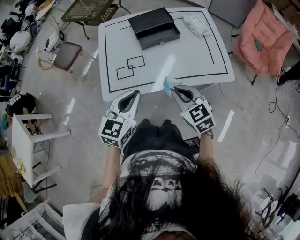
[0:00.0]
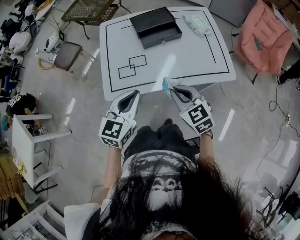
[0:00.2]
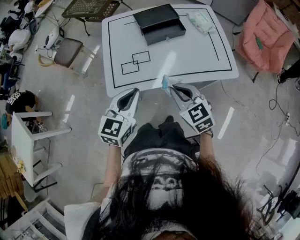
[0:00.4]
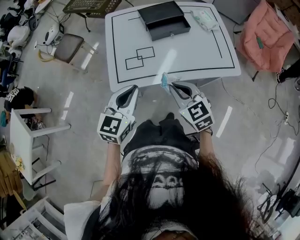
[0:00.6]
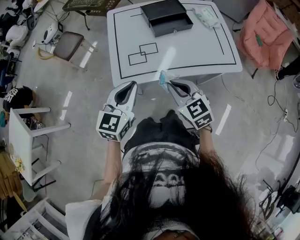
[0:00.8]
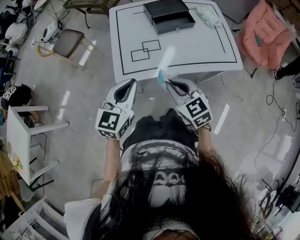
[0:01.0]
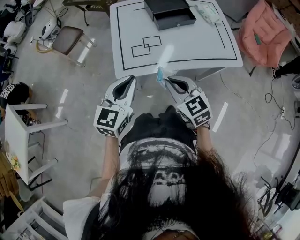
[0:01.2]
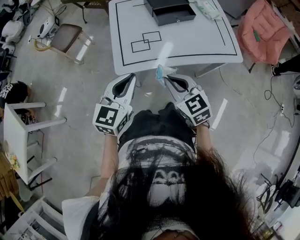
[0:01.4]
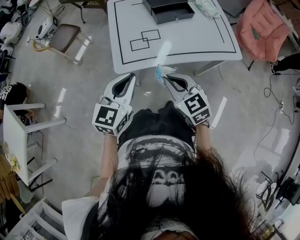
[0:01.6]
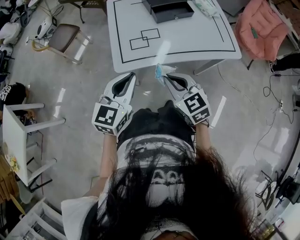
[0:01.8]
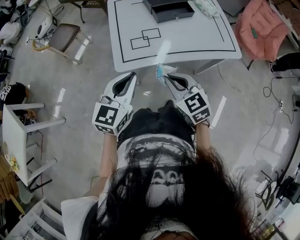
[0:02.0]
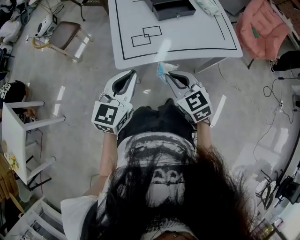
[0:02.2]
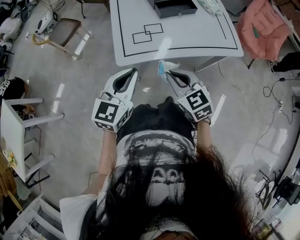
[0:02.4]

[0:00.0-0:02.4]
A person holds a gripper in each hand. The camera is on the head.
0:00.0 to 0:01.2: The two grippers go about 15 cm to the left.
0:01.2 to 0:02.4: The grippers stay close to where they were, moving slightly.

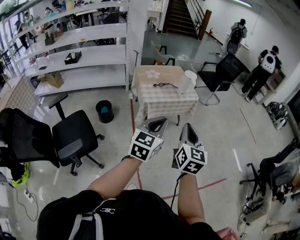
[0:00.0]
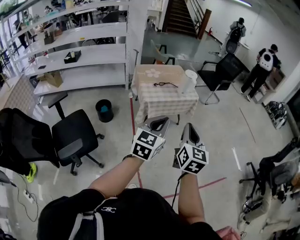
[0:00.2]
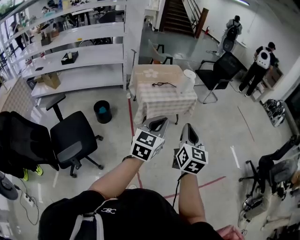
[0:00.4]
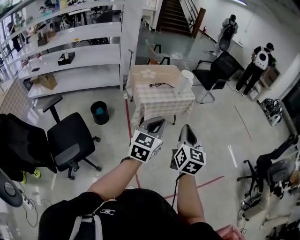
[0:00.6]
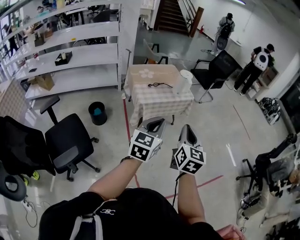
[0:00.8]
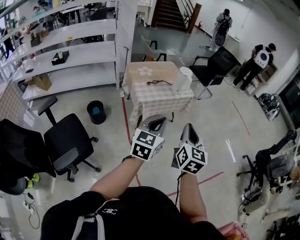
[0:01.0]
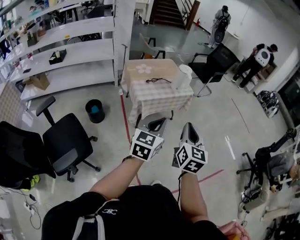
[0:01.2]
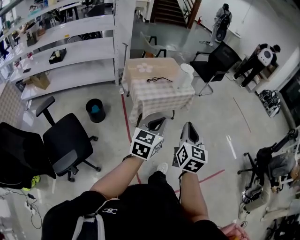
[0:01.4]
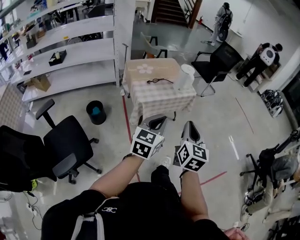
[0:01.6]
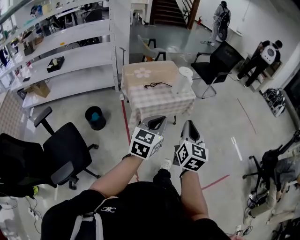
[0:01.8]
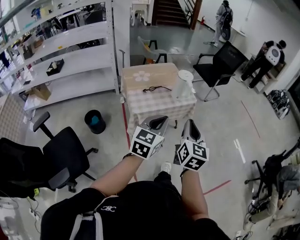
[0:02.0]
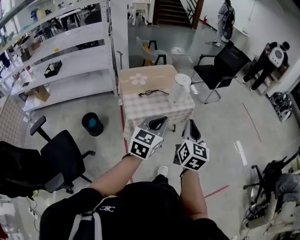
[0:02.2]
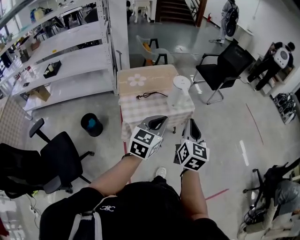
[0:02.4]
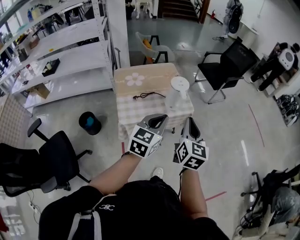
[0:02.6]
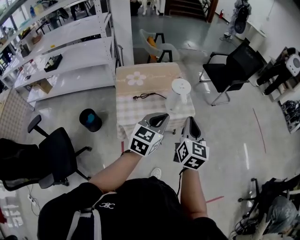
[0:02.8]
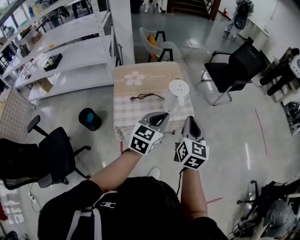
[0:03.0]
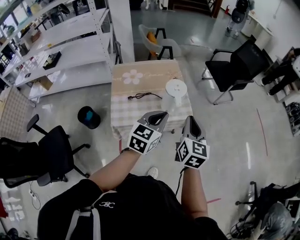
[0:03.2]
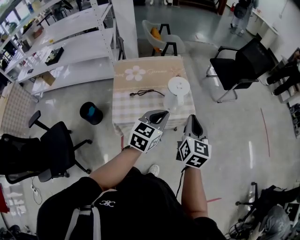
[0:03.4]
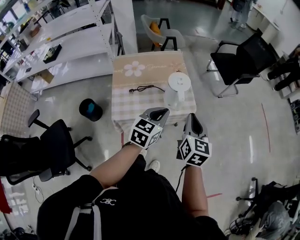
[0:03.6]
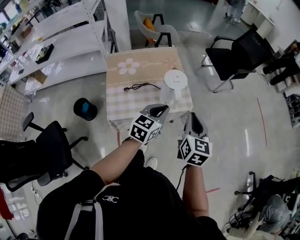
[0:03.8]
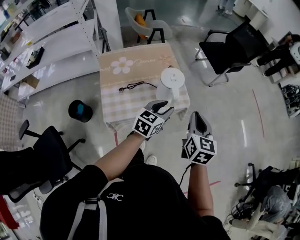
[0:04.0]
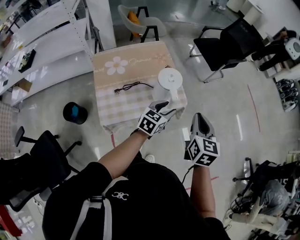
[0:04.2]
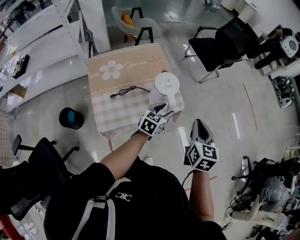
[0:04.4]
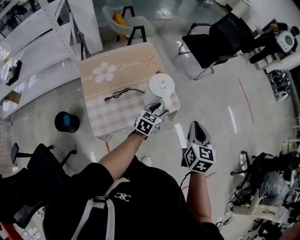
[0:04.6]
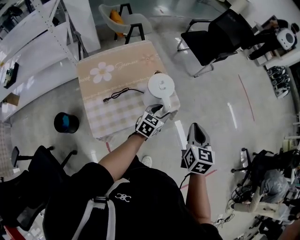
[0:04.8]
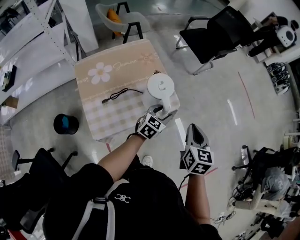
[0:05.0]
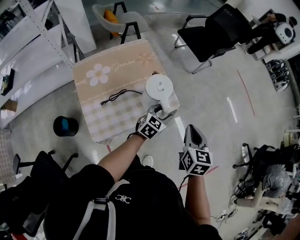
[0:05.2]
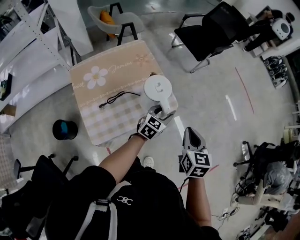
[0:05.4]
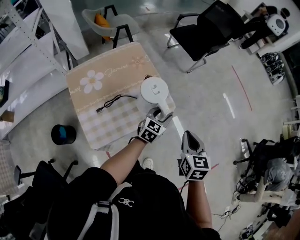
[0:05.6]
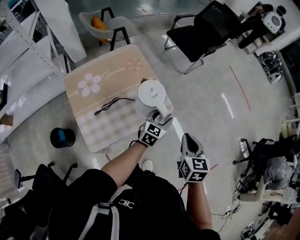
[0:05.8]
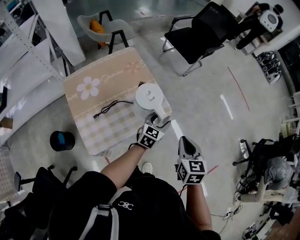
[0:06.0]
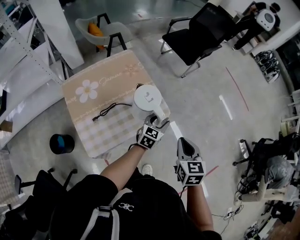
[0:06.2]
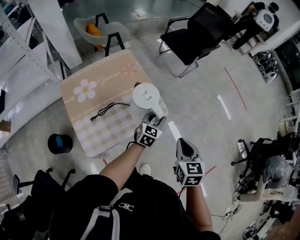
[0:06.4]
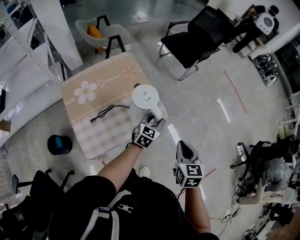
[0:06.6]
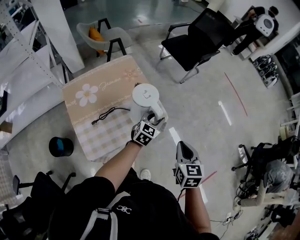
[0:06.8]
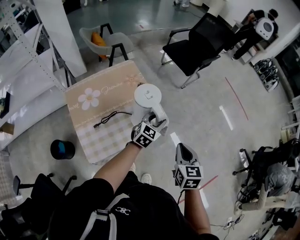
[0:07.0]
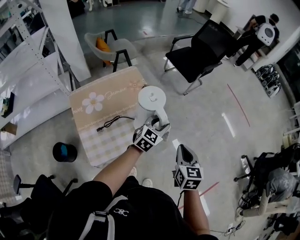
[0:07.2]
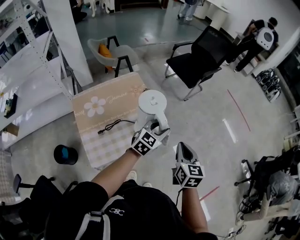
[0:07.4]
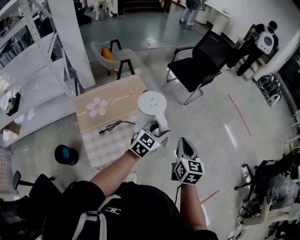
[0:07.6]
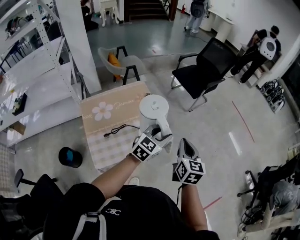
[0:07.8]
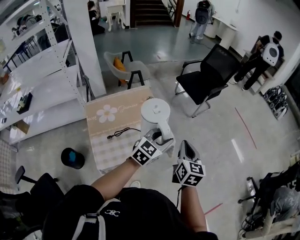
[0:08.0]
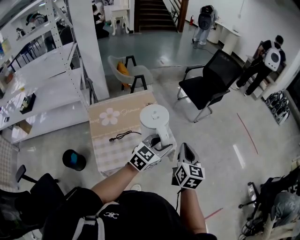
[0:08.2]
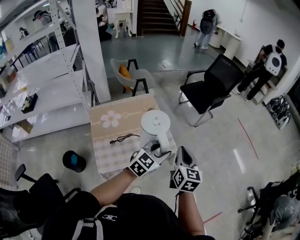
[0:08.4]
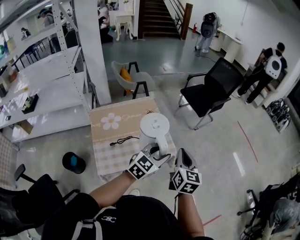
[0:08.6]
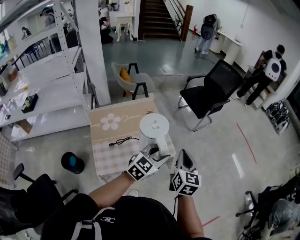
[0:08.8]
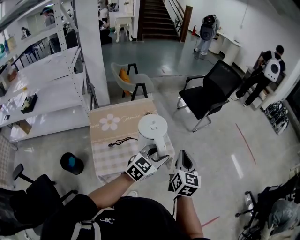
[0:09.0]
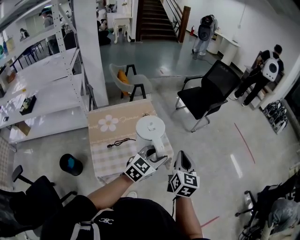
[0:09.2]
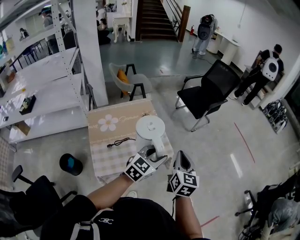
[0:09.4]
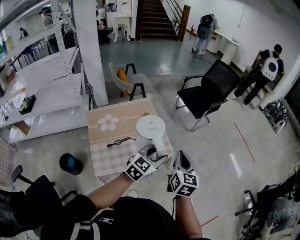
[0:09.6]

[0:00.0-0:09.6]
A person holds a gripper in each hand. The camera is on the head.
0:00.0 to 0:01.6: The two grippers go roughly 10 cm forward and downward.
0:01.6 to 0:03.2: The two grippers travel together, forward, approximately 50 cm.
0:03.2 to 0:04.8: The left gripper shifts approximately 25 cm downward and forward, swivels approximately 20 degrees, and opens up; the right gripper goes about 10 cm downward and forward, and rotates about 20 degrees.
0:04.8 to 0:06.4: The left gripper shifts by about 5 cm.
0:06.4 to 0:08.0: The right gripper heads upward, covering about 10 cm, and changes its angle by approximately 20 degrees; the left gripper goes about 20 cm upward.
0:08.0 to 0:09.6: The grippers make only small movements.

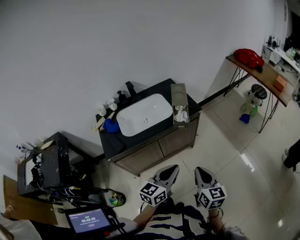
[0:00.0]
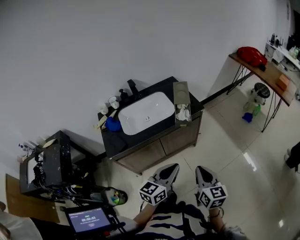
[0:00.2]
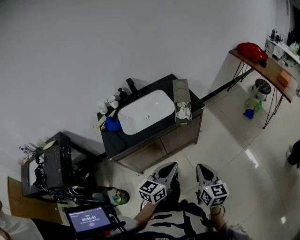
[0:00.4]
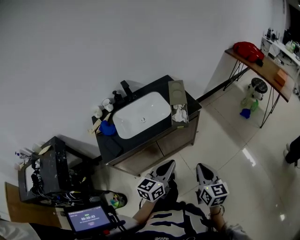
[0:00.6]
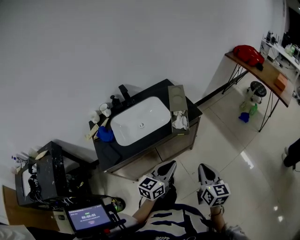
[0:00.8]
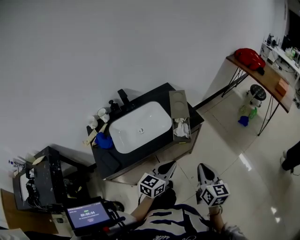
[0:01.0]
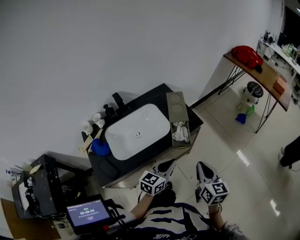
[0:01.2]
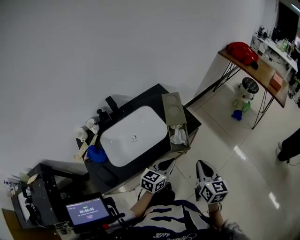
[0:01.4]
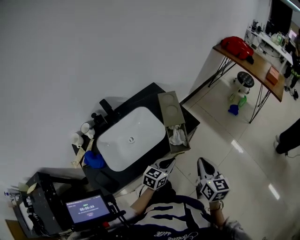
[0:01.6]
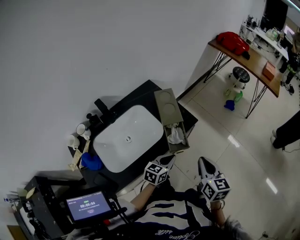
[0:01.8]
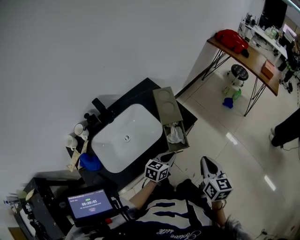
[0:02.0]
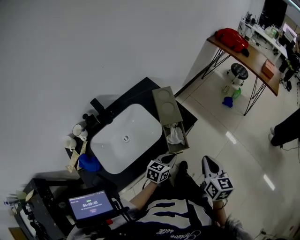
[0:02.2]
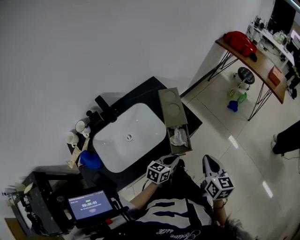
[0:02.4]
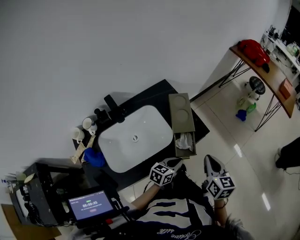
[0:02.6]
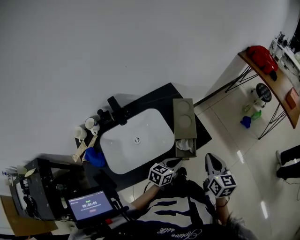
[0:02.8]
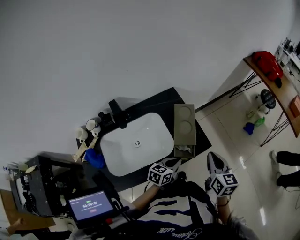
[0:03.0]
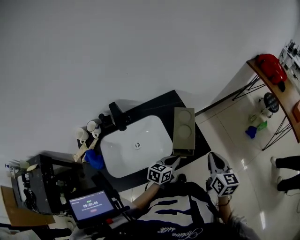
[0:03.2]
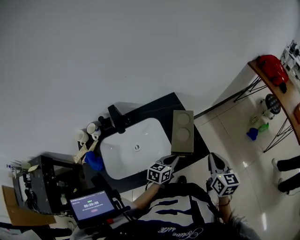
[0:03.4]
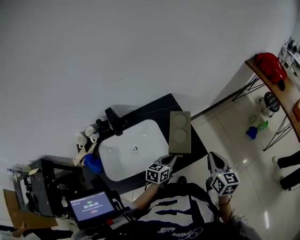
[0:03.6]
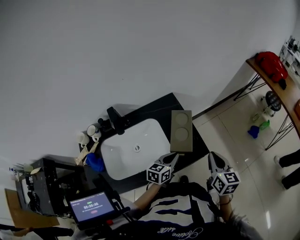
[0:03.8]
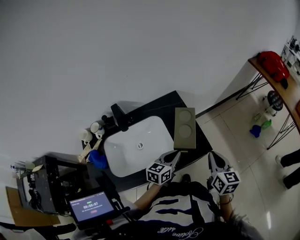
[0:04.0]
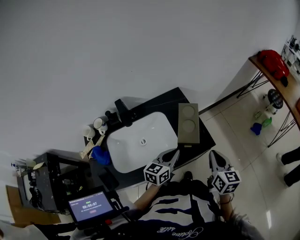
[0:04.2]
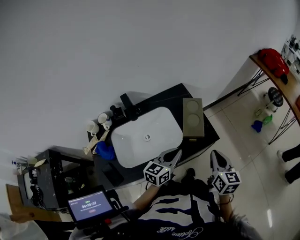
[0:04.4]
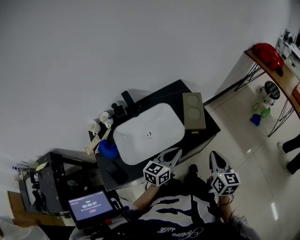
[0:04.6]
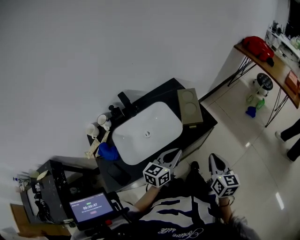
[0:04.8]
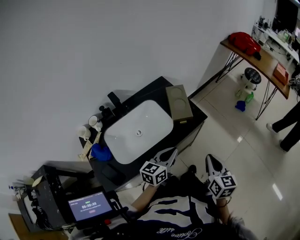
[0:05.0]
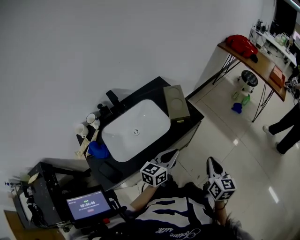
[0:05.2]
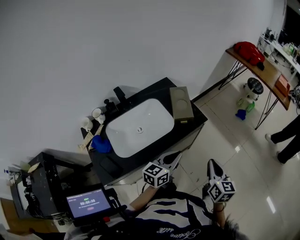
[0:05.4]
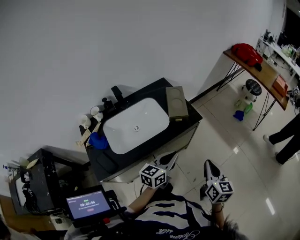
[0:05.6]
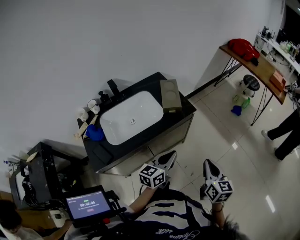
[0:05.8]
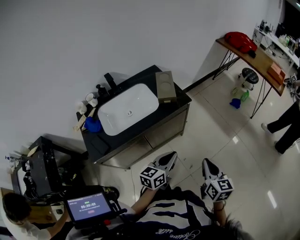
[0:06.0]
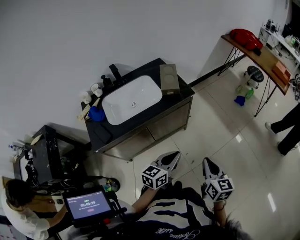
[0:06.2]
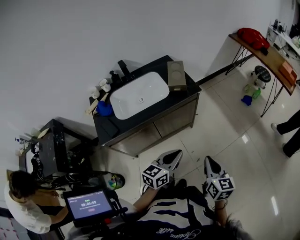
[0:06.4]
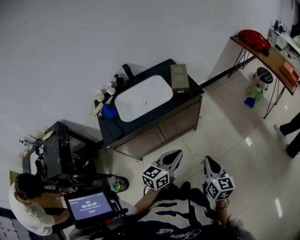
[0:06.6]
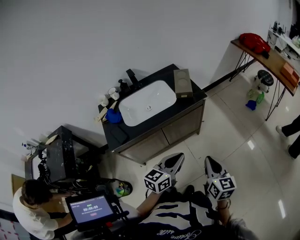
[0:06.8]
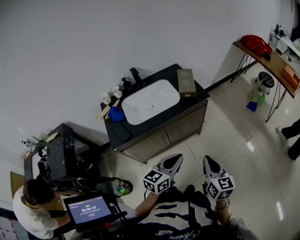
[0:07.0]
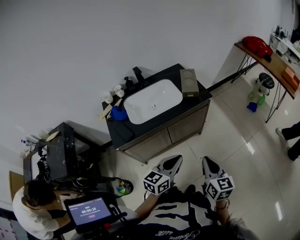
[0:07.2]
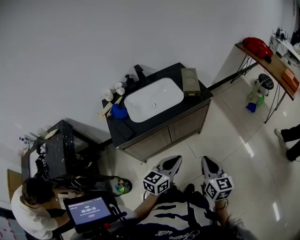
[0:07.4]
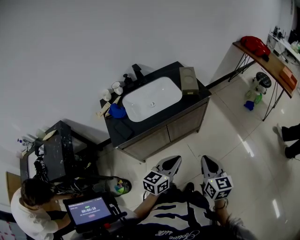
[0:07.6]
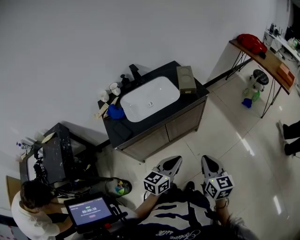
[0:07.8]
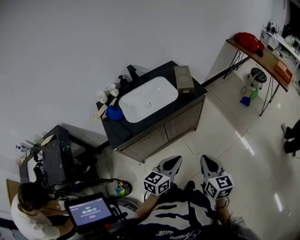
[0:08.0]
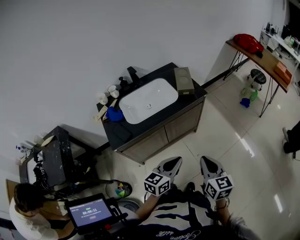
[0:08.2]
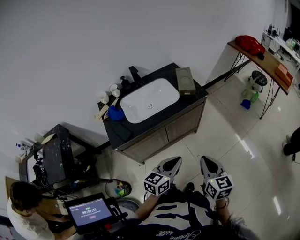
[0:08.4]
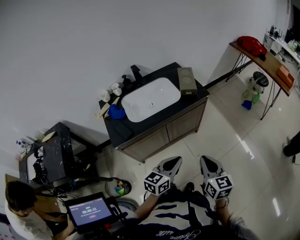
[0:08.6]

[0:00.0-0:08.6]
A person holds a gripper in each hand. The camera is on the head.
0:00.0 to 0:01.4: The two grippers go about 25 cm forward.
0:01.4 to 0:02.8: The right gripper moves forward, some 15 cm; the left gripper travels forward and downward by roughly 15 cm.
0:02.8 to 0:04.4: The left gripper shifts approximately 10 cm upward and to the left, and turns by roughly 20 degrees, while the right gripper reaches approximately 10 cm forward, then returns.
0:04.4 to 0:05.8: The grippers both shift backward and to the right by about 25 cm.
0:05.8 to 0:07.2: The left gripper moves backward, about 15 cm; the right gripper shifts approximately 15 cm backward and to the left.
0:07.2 to 0:08.6: The grippers make only small movements.

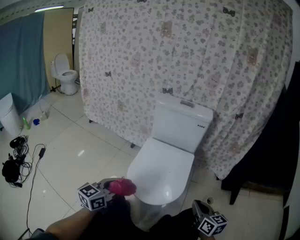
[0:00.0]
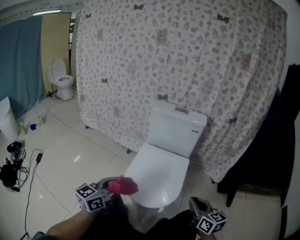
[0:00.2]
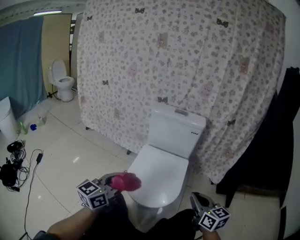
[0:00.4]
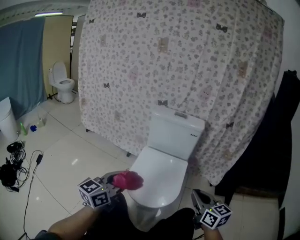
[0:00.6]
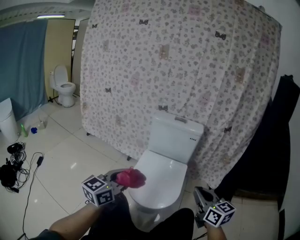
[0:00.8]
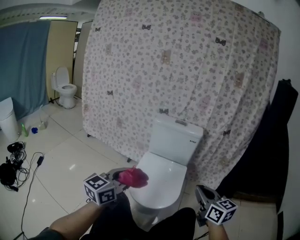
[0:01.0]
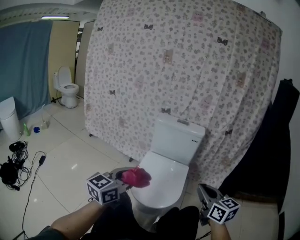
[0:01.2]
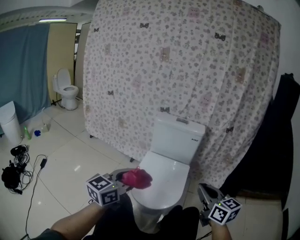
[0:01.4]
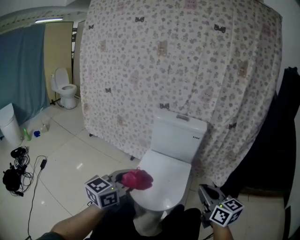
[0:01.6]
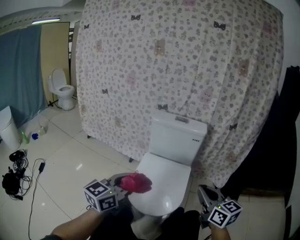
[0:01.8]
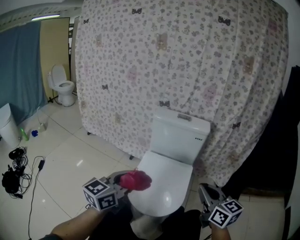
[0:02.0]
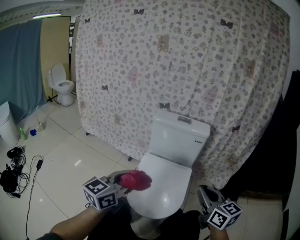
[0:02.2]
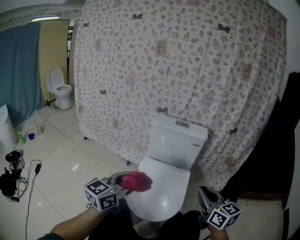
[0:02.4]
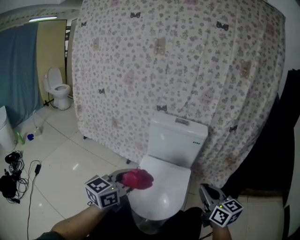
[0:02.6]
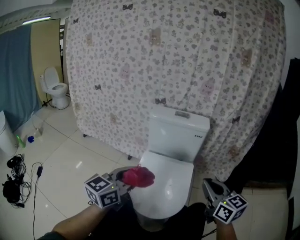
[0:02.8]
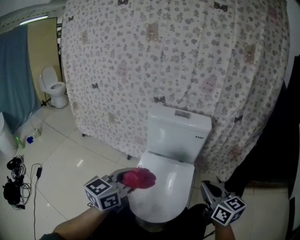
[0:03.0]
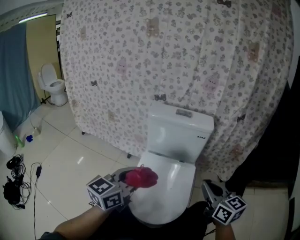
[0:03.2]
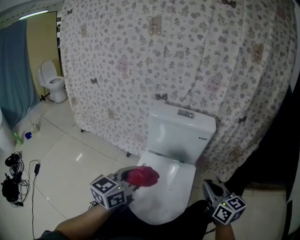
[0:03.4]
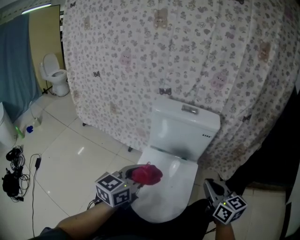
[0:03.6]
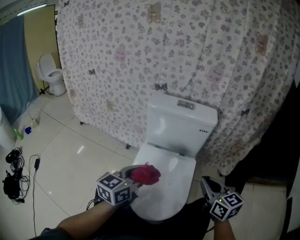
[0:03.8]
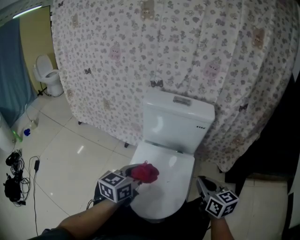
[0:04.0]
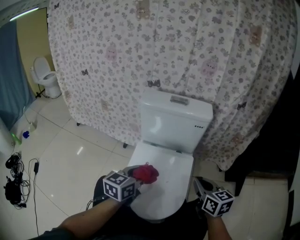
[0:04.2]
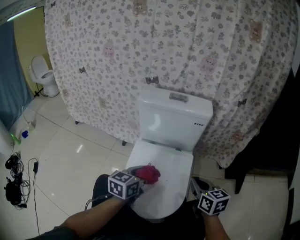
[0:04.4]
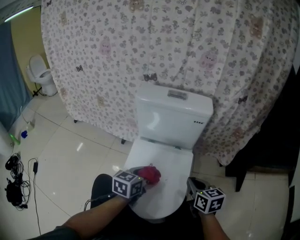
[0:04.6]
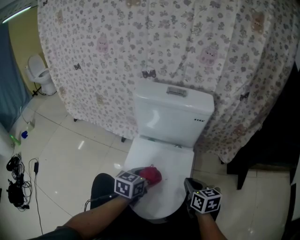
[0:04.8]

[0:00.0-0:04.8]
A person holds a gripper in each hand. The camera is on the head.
0:00.0 to 0:01.6: The two grippers go approximately 15 cm upward.
0:01.6 to 0:03.2: The grippers both shift forward by approximately 15 cm.
0:03.2 to 0:04.8: The left gripper travels downward and forward by roughly 20 cm, and rotates some 30 degrees. Meanwhile the right gripper travels downward by some 20 cm, and rotates some 30 degrees.
